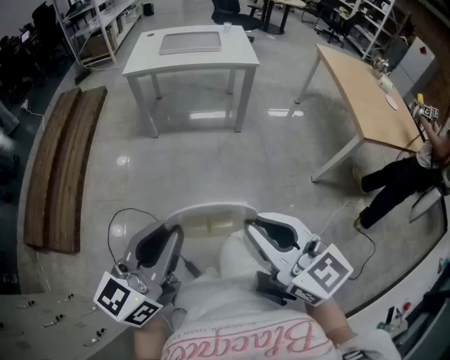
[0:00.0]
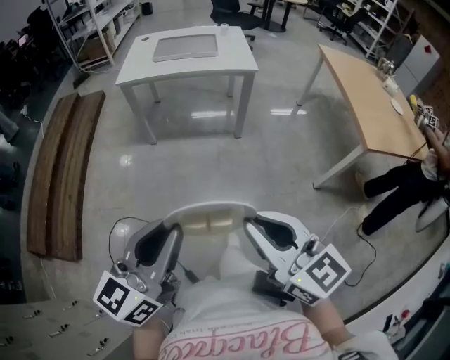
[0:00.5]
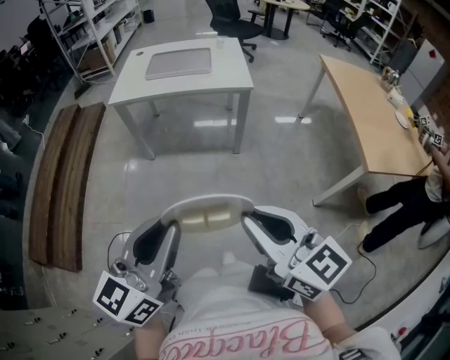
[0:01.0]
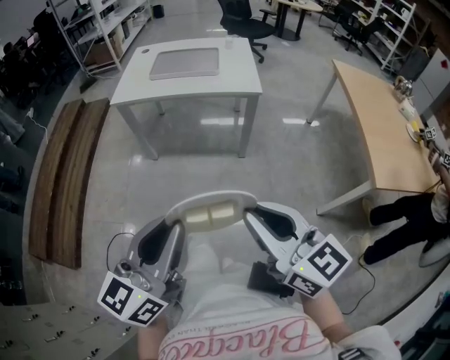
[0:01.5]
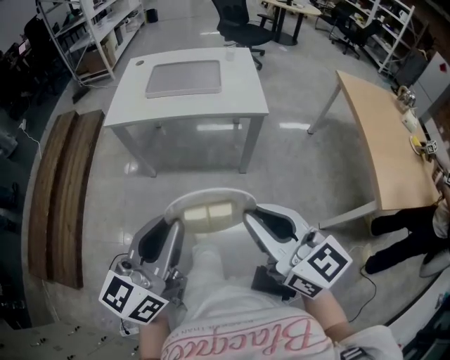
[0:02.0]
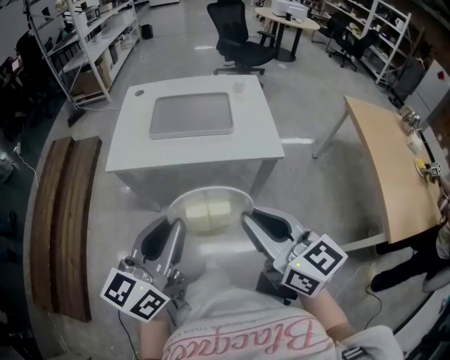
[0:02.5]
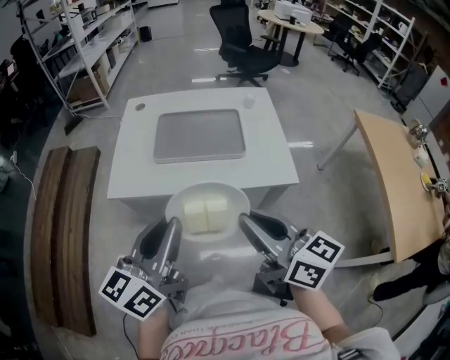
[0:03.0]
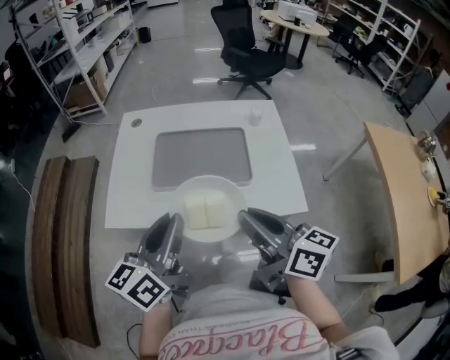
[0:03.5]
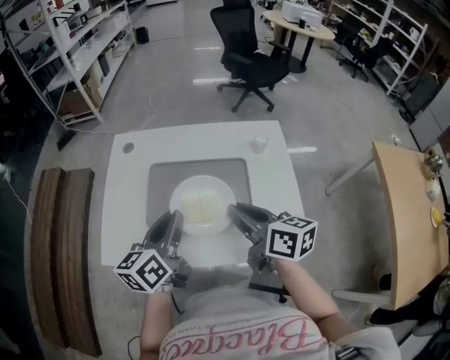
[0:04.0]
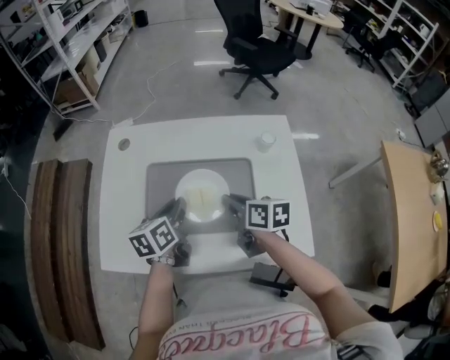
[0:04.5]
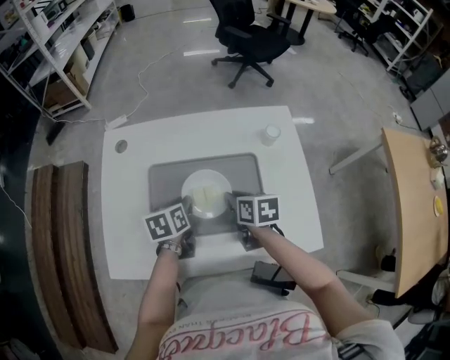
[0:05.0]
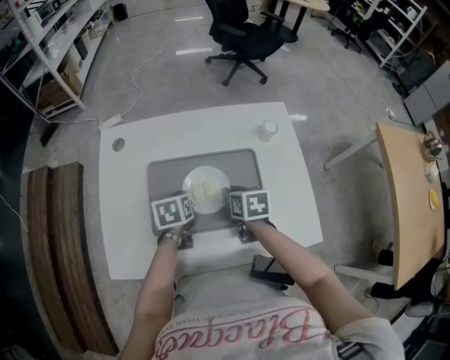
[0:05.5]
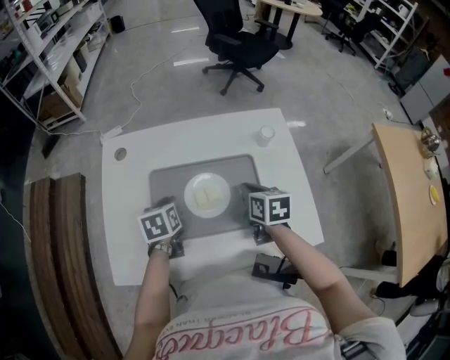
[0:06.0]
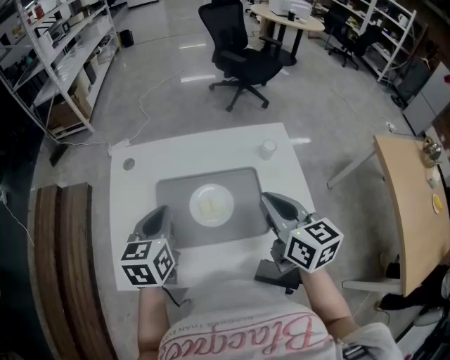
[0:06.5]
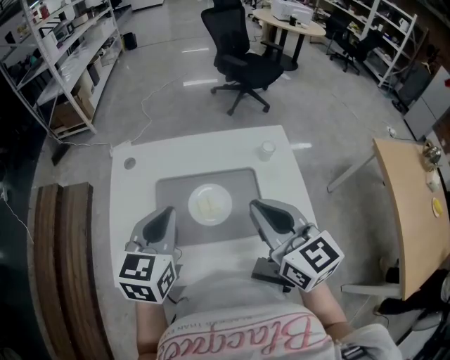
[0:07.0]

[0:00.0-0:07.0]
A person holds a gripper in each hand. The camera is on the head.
0:00.0 to 0:02.0: The two grippers go some 30 cm forward.
0:02.0 to 0:03.5: The two grippers go some 35 cm forward. The right gripper swivels about 30 degrees.
0:03.5 to 0:05.0: The left gripper goes about 35 cm downward and forward, and angles its fingers downward, by about 50 degrees; the right gripper moves forward and downward, some 30 cm, and tilts its fingers roughly 40 degrees downward.
0:05.0 to 0:07.0: The grippers both shift upward by roughly 25 cm. The left gripper swivels some 40 degrees; the right gripper points its fingers roughly 30 degrees further upward.

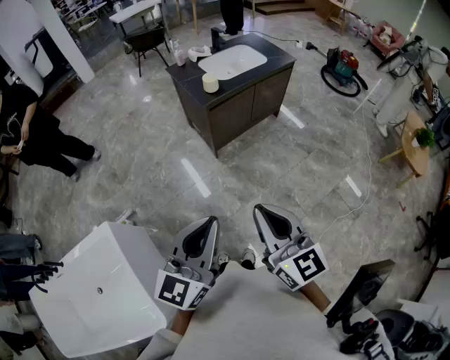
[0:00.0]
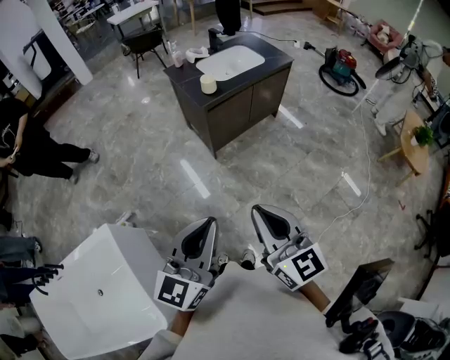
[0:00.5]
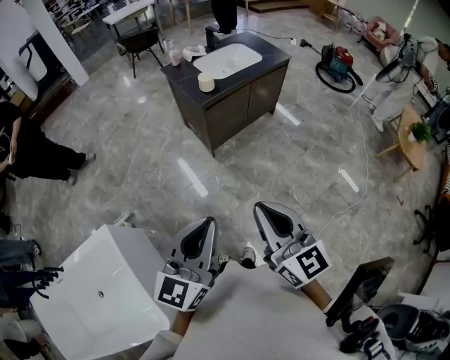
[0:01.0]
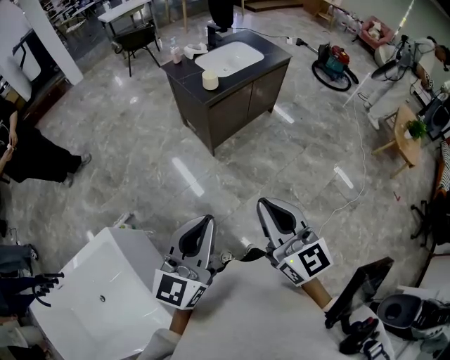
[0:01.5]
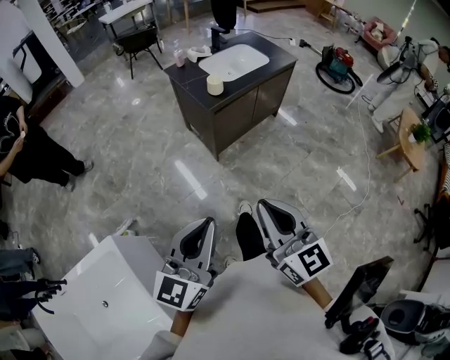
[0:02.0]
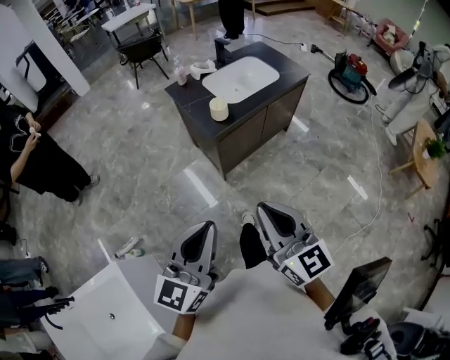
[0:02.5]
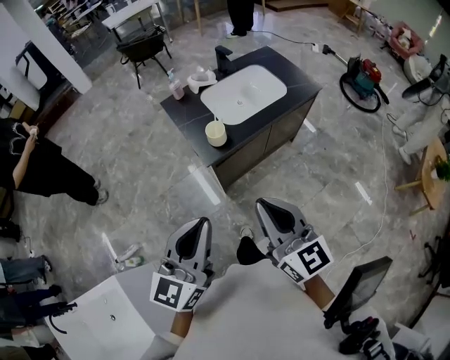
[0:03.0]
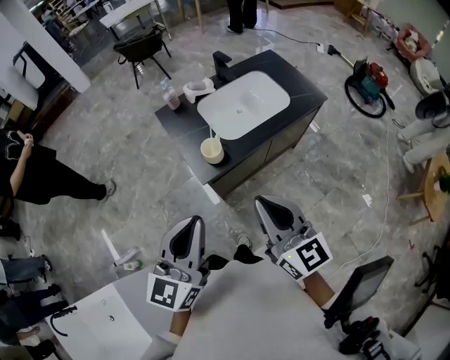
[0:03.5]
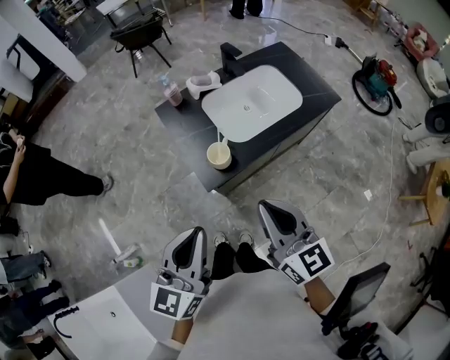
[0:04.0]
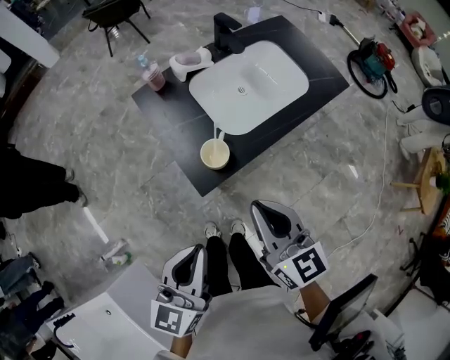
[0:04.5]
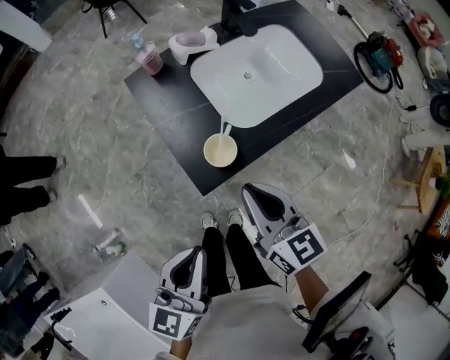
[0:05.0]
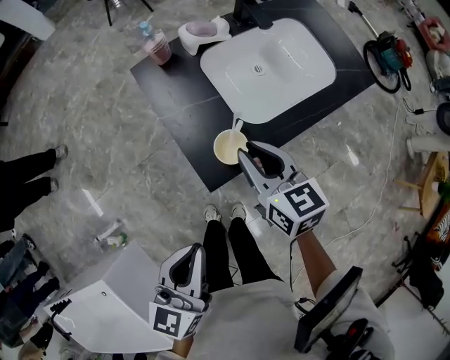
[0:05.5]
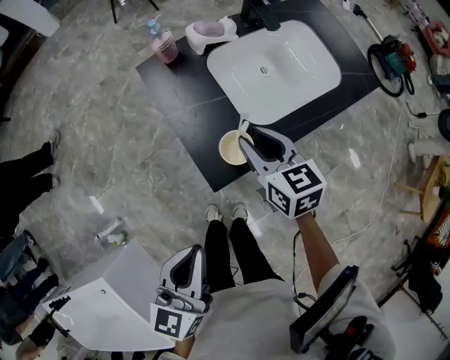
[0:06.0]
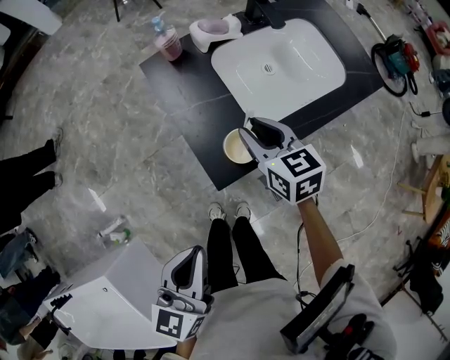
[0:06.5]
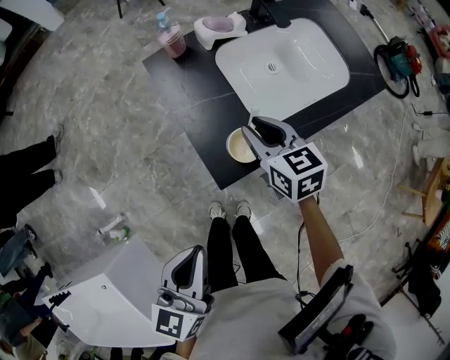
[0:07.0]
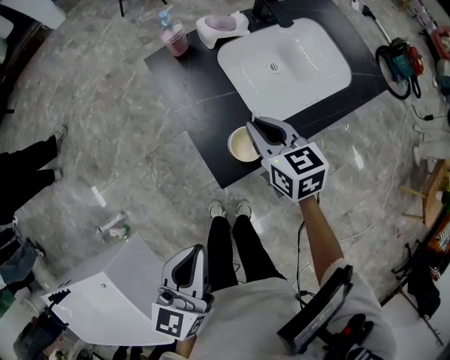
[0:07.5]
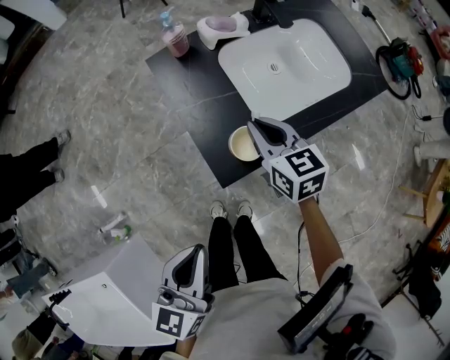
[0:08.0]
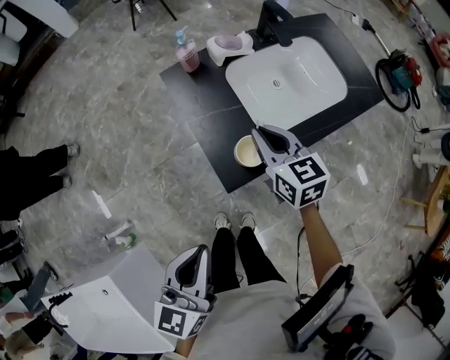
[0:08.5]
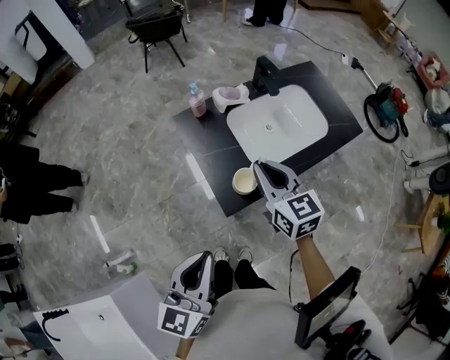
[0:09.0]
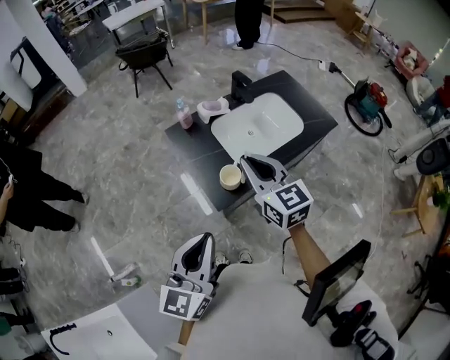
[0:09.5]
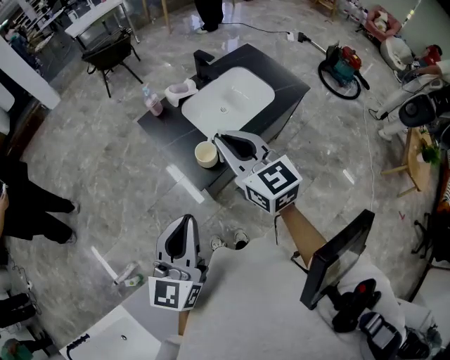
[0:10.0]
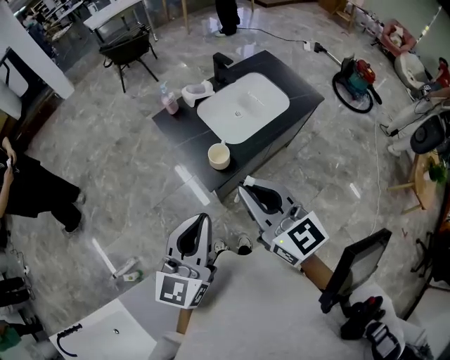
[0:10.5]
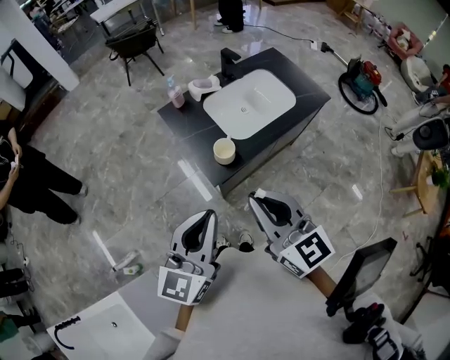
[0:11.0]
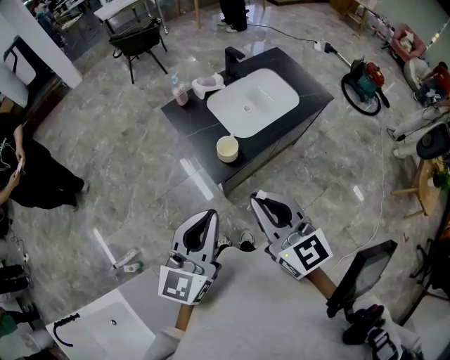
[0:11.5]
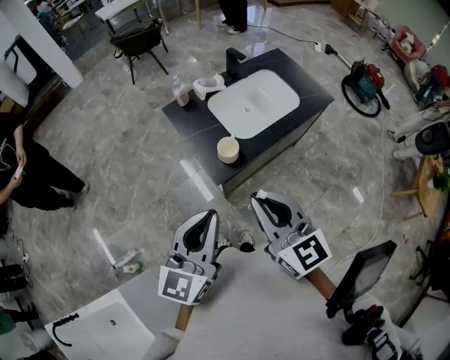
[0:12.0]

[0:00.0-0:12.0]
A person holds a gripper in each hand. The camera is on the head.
0:00.0 to 0:02.0: Both grippers move to the left, approximately 5 cm.
0:02.0 to 0:04.0: The grippers both shift forward by approximately 40 cm.
0:04.0 to 0:06.0: The right gripper heads forward and downward, covering approximately 25 cm, rotates approximately 20 degrees, and opens its fingers; the left gripper shifts some 10 cm downward and to the left.
0:06.0 to 0:08.0: The right gripper closes.
0:08.0 to 0:10.0: The right gripper shifts approximately 25 cm upward and backward, and rotates some 30 degrees; the left gripper travels upward by some 15 cm, and changes its angle by about 20 degrees.
0:10.0 to 0:12.0: The right gripper goes some 15 cm backward.

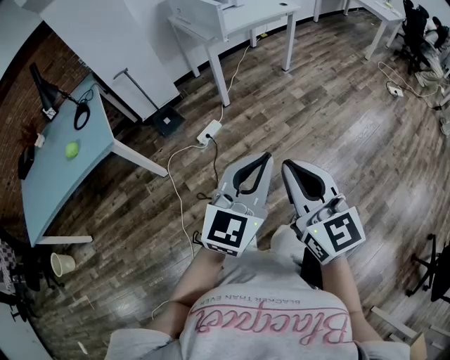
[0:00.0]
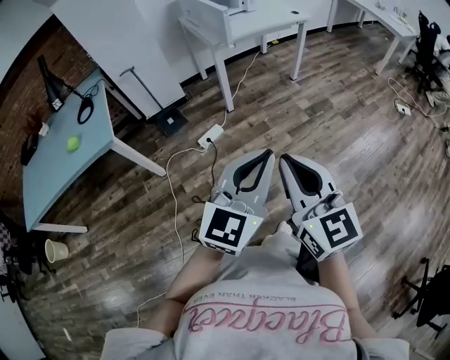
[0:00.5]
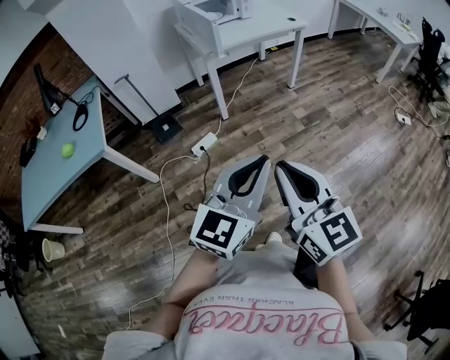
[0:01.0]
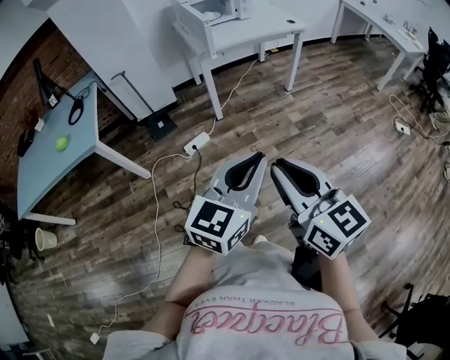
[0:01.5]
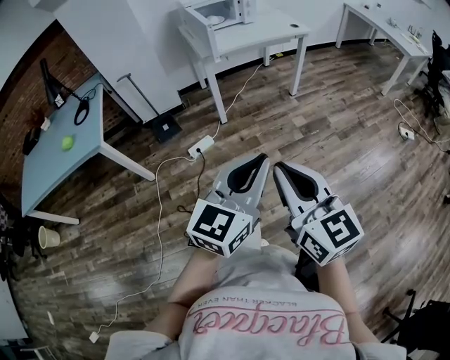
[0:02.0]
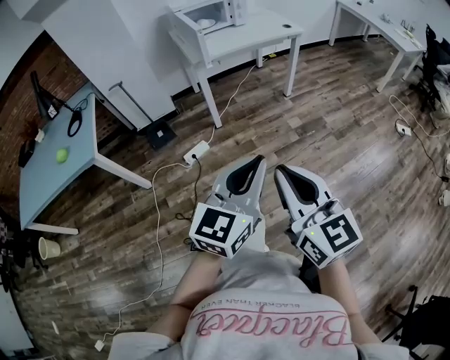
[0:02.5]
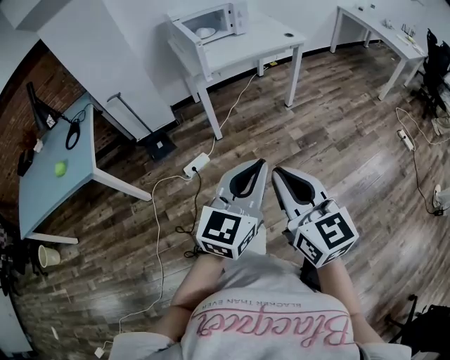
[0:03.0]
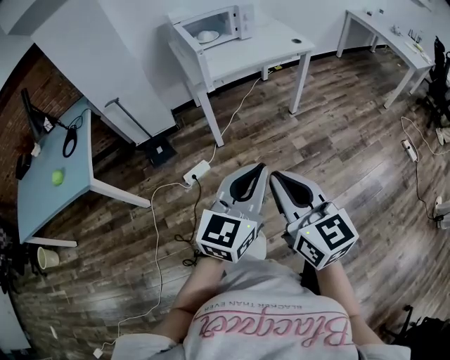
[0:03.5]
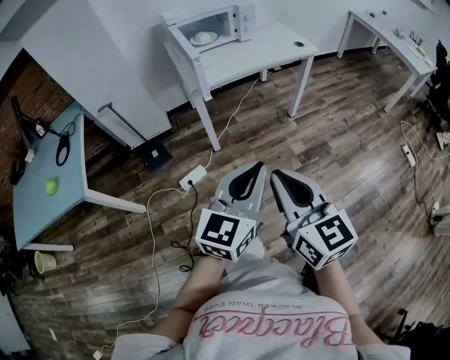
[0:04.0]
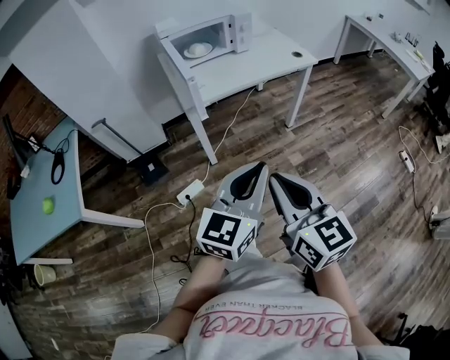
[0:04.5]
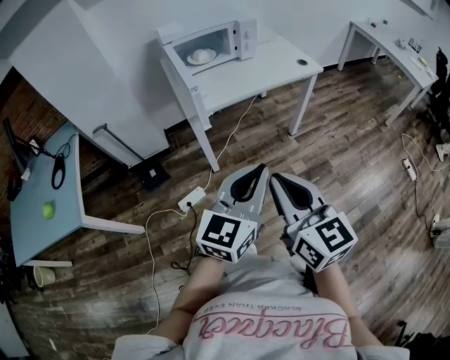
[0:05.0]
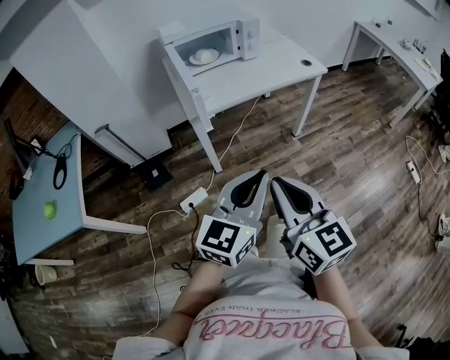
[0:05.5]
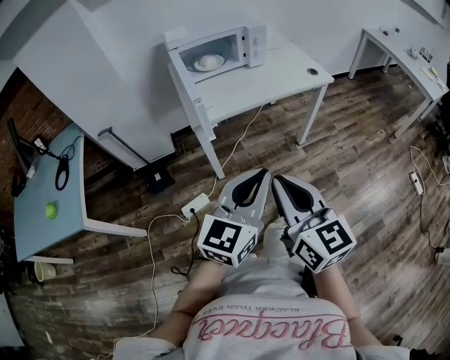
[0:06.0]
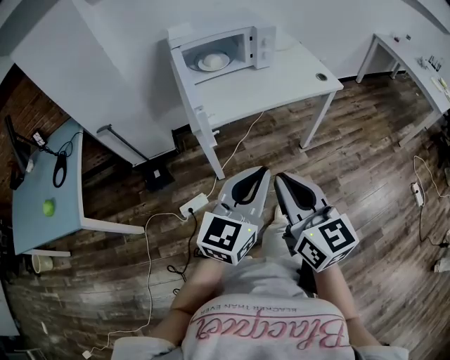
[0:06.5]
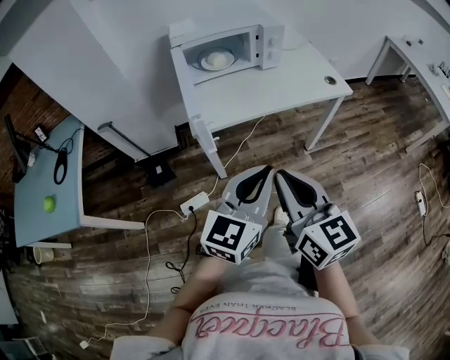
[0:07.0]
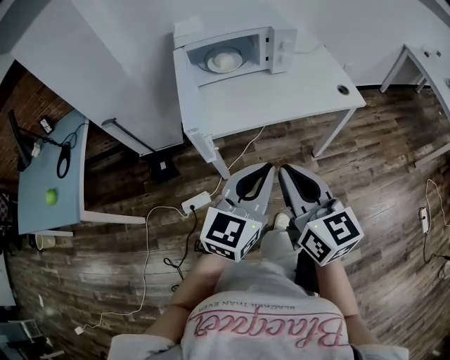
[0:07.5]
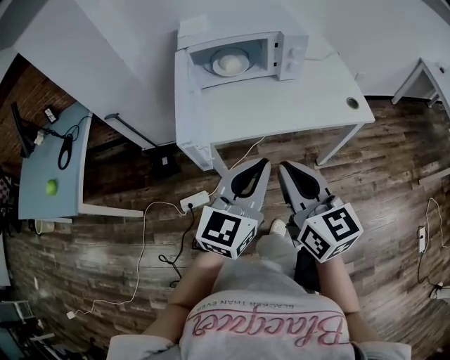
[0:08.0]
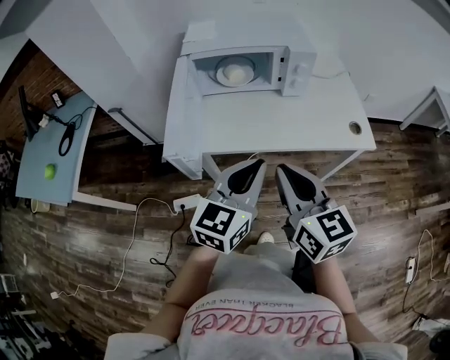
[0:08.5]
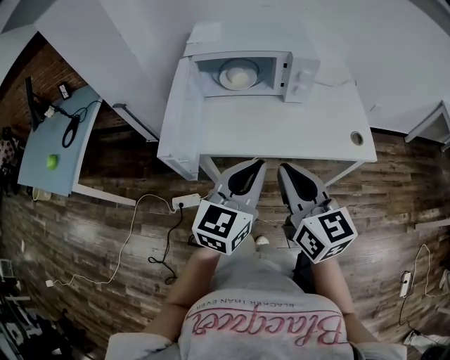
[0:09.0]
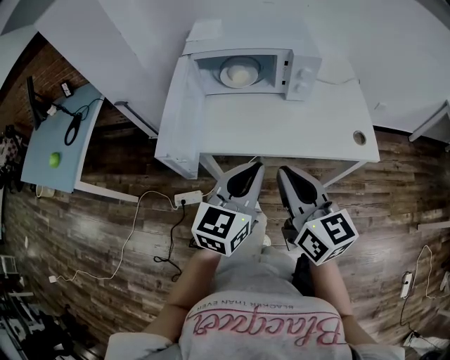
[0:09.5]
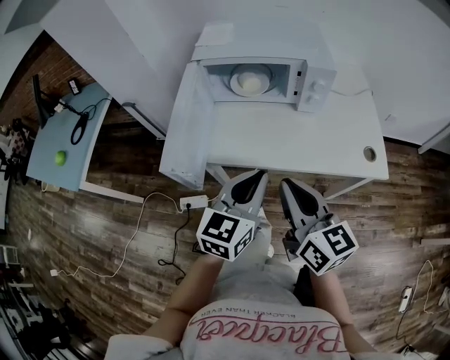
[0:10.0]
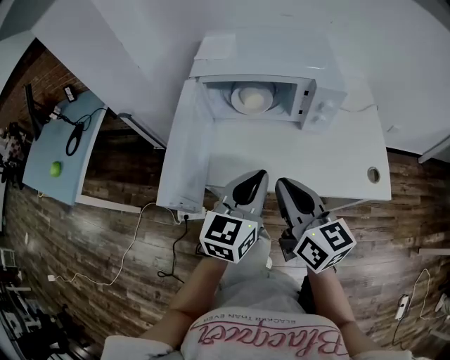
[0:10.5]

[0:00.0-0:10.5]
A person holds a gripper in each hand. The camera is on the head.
0:00.0 to 0:02.0: The grippers both shift to the right and forward by about 20 cm.
0:02.0 to 0:04.0: Both grippers move forward, some 25 cm.
0:04.0 to 0:06.5: The grippers both shift forward by about 20 cm.
0:06.5 to 0:08.5: The two grippers go about 25 cm forward.
0:08.5 to 0:10.5: Both grippers move forward, about 15 cm.
